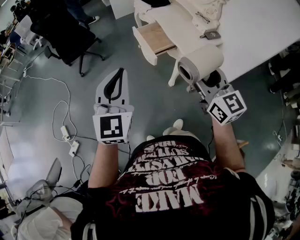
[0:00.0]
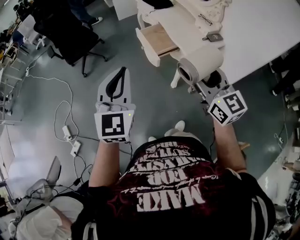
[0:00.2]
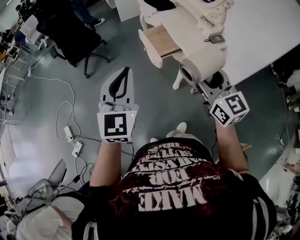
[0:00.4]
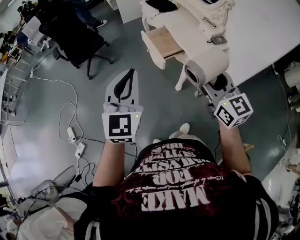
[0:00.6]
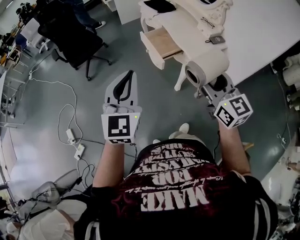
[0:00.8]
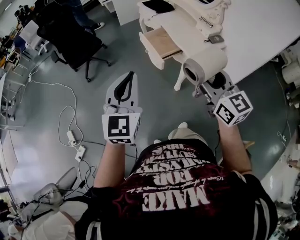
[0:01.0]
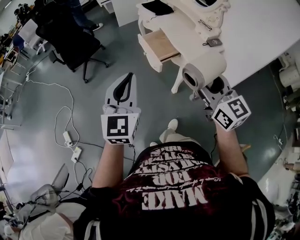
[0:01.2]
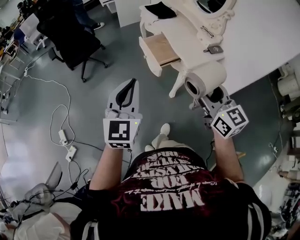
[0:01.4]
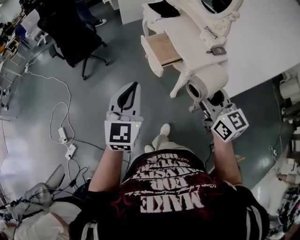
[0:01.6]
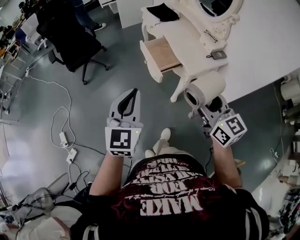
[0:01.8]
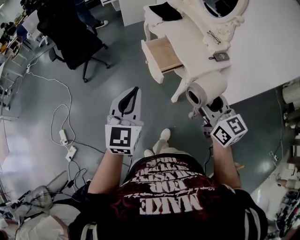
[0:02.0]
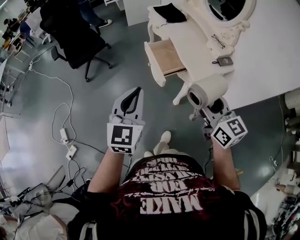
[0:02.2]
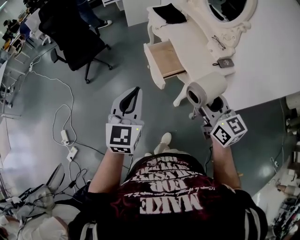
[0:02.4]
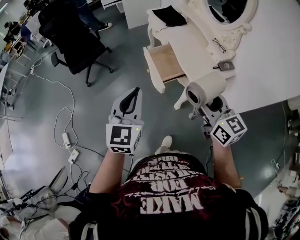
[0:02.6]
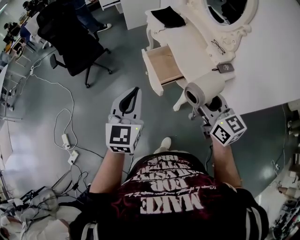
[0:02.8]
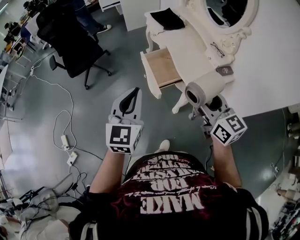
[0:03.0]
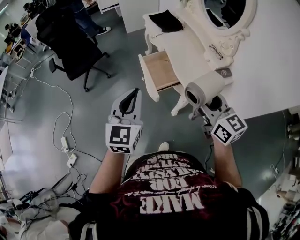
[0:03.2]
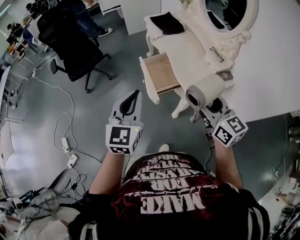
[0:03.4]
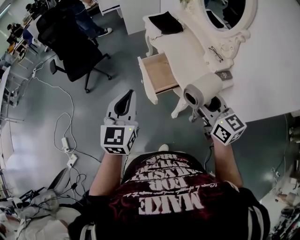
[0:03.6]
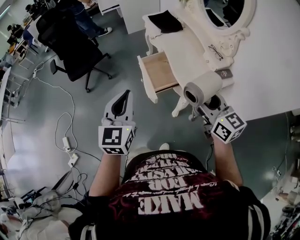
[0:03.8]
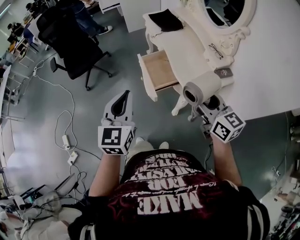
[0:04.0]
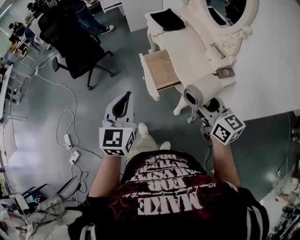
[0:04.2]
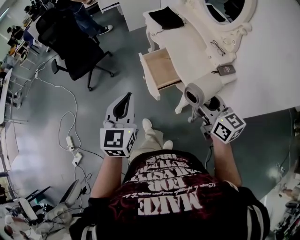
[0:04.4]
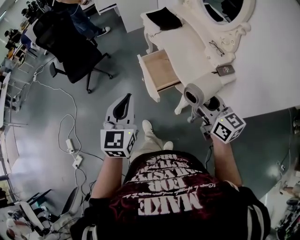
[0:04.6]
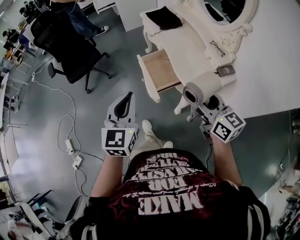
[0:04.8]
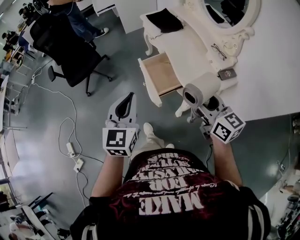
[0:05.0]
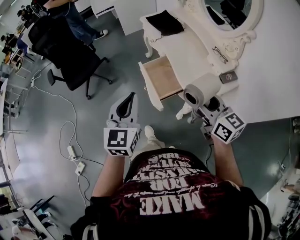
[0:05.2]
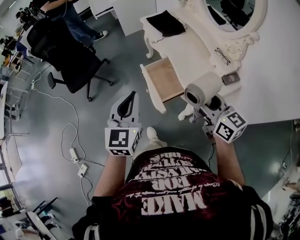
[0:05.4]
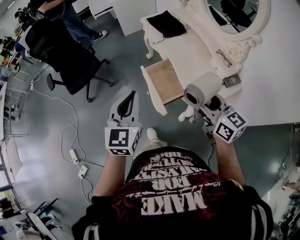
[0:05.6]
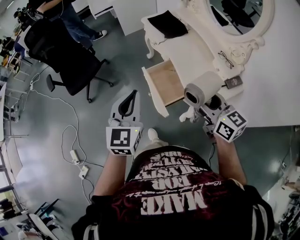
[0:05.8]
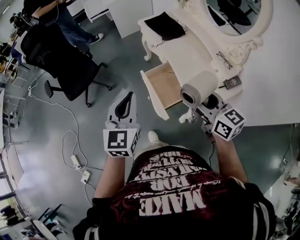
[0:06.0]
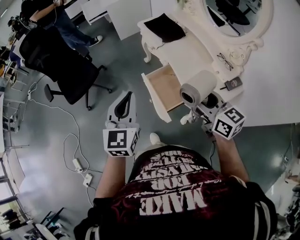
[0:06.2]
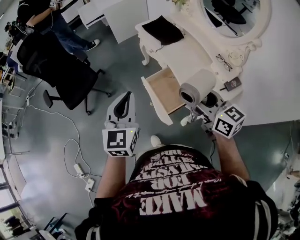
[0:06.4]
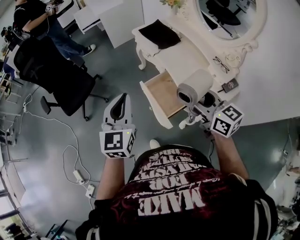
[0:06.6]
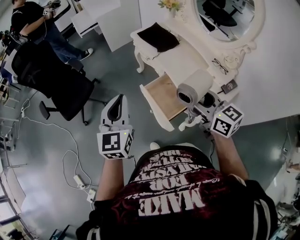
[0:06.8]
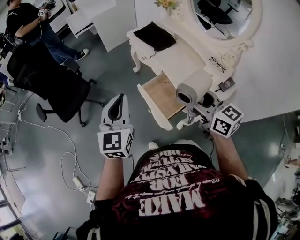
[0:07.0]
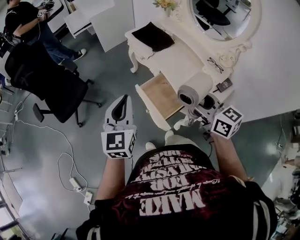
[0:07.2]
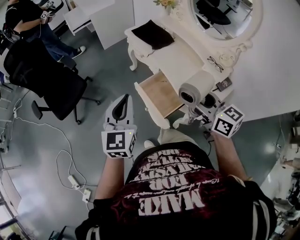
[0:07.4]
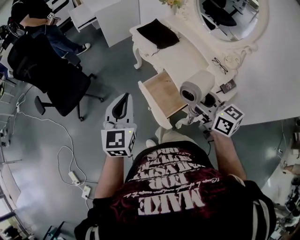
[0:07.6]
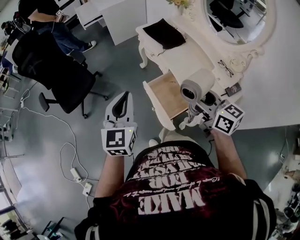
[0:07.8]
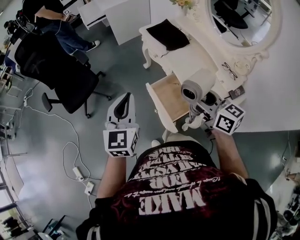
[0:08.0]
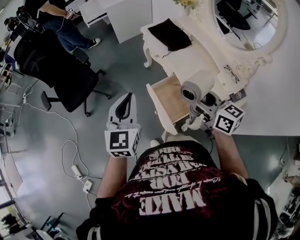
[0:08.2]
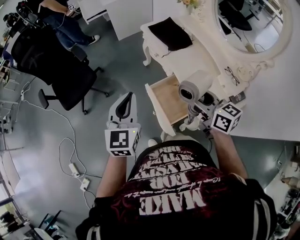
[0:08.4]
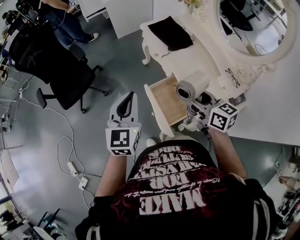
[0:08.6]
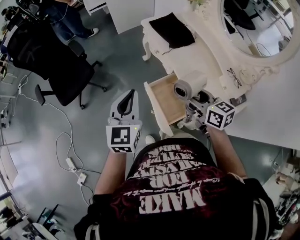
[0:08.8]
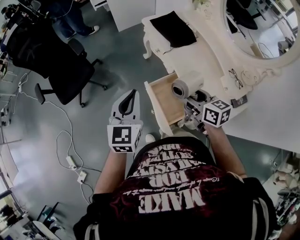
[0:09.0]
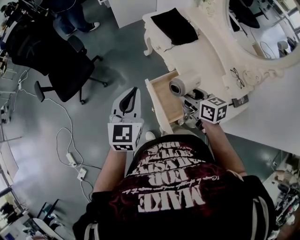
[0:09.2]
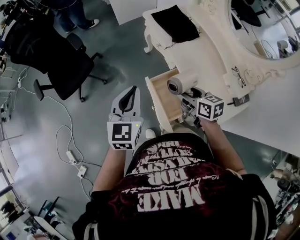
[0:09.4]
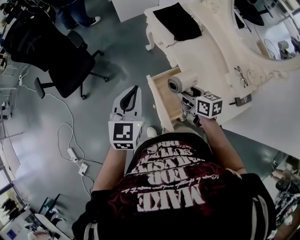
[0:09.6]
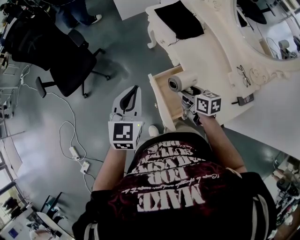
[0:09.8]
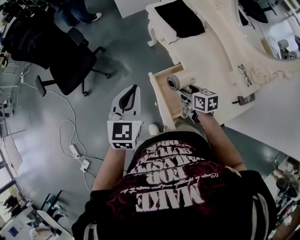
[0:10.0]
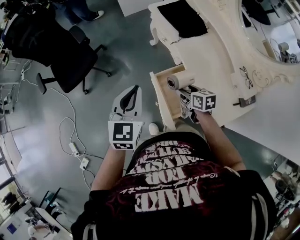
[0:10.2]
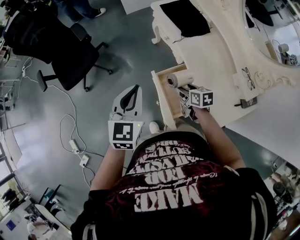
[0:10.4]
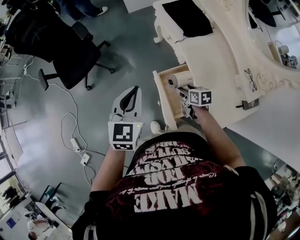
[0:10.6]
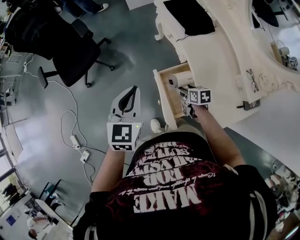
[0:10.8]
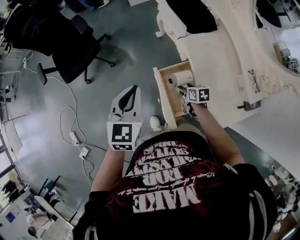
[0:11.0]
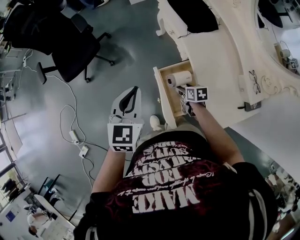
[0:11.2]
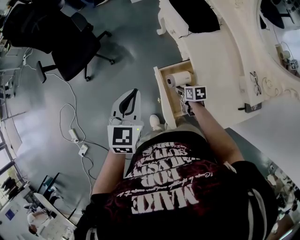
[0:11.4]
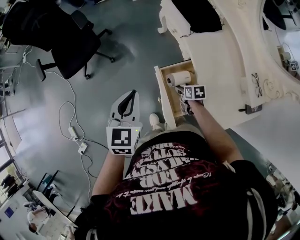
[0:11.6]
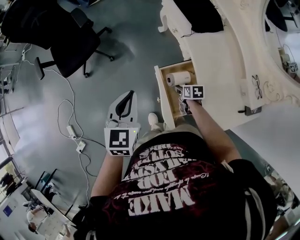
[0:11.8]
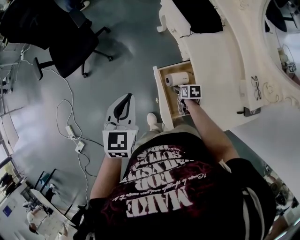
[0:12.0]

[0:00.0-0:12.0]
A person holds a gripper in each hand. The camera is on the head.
0:00.0 to 0:01.6: The grippers stay close to where they were, moving slightly.
0:01.6 to 0:03.0: The grippers both shift forward and to the right by some 20 cm.
0:03.0 to 0:04.4: The right gripper ends up some 5 cm from where it was.
0:04.4 to 0:06.0: The grippers both shift forward by roughly 20 cm.
0:06.0 to 0:07.6: Both grippers move forward, roughly 5 cm.
0:07.6 to 0:09.0: The left gripper travels forward and downward by roughly 10 cm. The right gripper travels forward and downward by approximately 20 cm.
0:09.0 to 0:10.4: The right gripper goes about 20 cm downward, and rotates roughly 20 degrees.
0:10.4 to 0:12.0: The right gripper goes approximately 15 cm downward, and swivels roughly 20 degrees. The left gripper is displaced downward by some 5 cm.

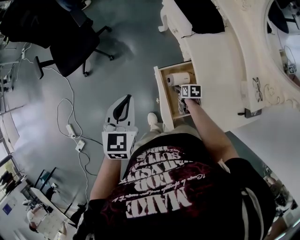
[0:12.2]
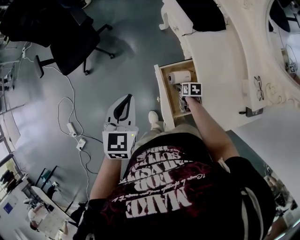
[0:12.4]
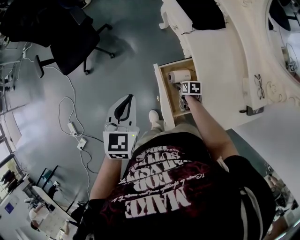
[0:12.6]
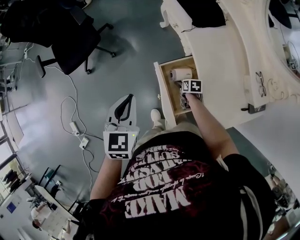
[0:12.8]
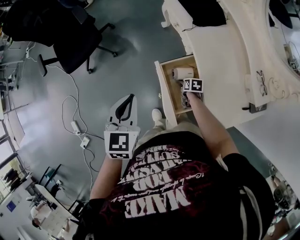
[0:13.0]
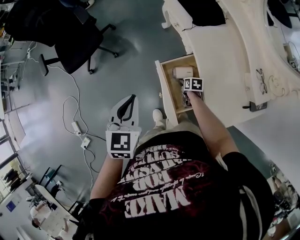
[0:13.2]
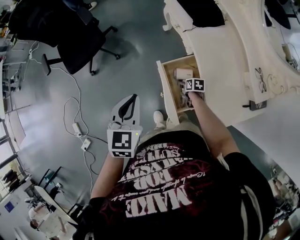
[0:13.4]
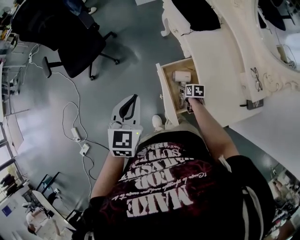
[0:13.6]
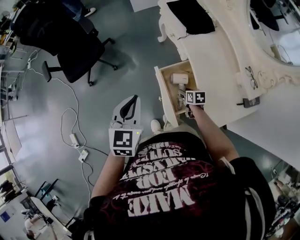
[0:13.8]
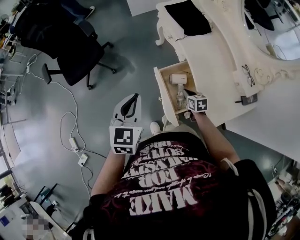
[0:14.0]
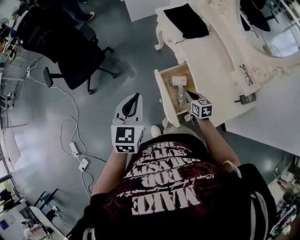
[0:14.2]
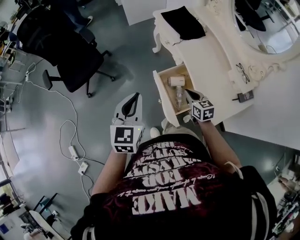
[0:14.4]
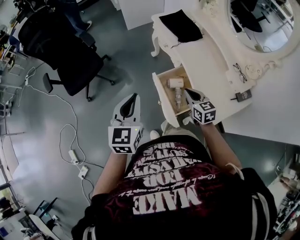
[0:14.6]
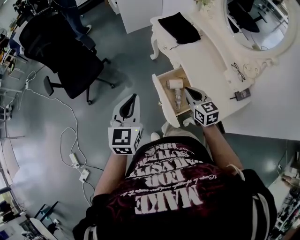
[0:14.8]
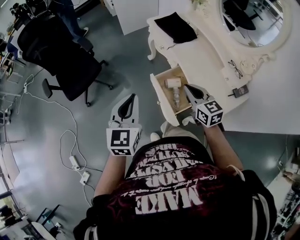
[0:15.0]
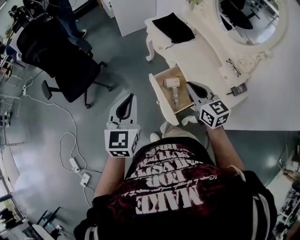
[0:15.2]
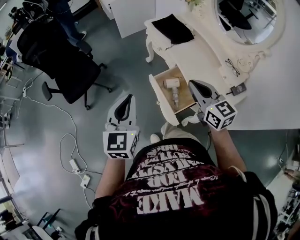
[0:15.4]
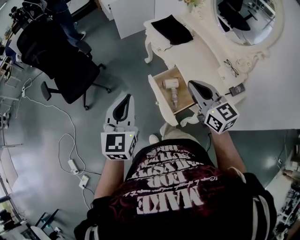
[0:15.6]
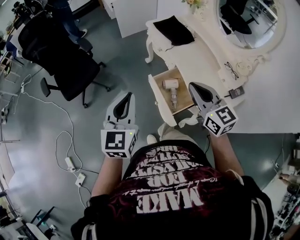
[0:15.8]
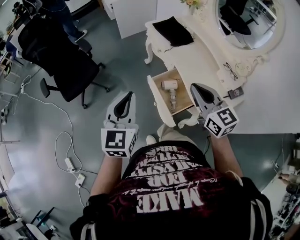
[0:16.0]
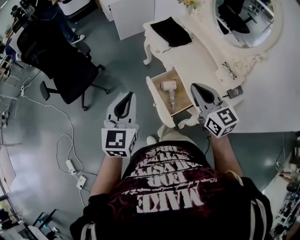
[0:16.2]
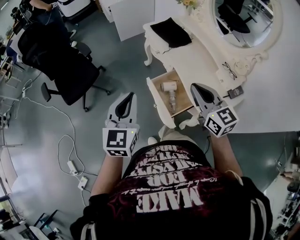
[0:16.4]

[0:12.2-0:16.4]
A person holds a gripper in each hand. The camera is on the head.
0:12.2 to 0:13.6: The left gripper travels backward by about 5 cm.
0:13.6 to 0:15.0: The left gripper is displaced upward and backward by approximately 10 cm; the right gripper moves upward, approximately 35 cm, tilts its fingers roughly 40 degrees upward, and closes up.
0:15.0 to 0:16.4: The right gripper is displaced upward by roughly 10 cm.

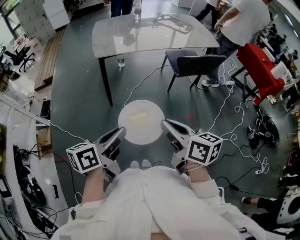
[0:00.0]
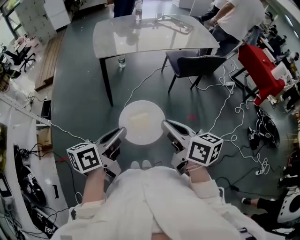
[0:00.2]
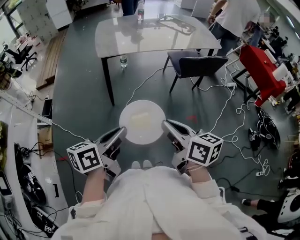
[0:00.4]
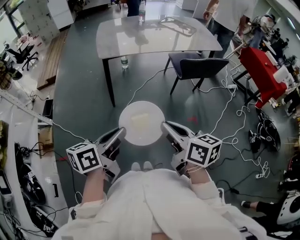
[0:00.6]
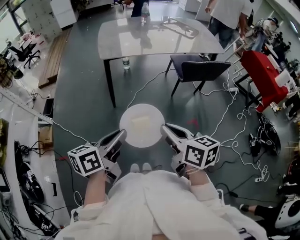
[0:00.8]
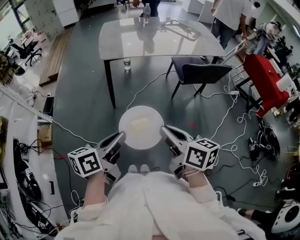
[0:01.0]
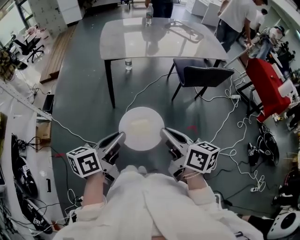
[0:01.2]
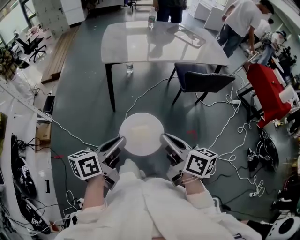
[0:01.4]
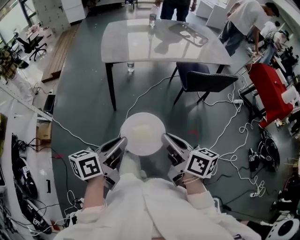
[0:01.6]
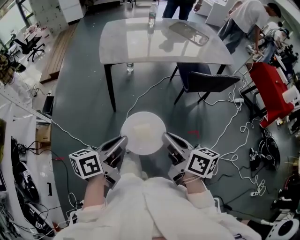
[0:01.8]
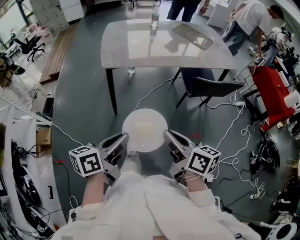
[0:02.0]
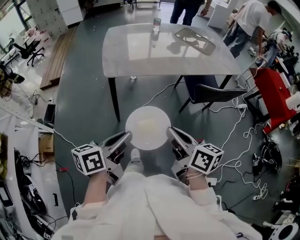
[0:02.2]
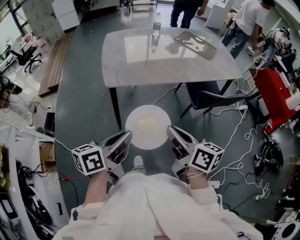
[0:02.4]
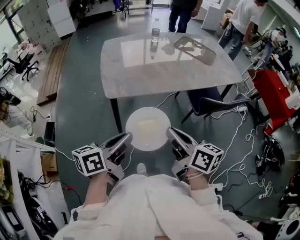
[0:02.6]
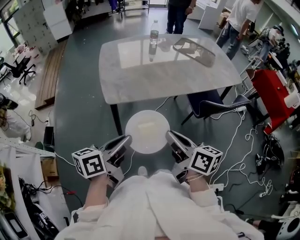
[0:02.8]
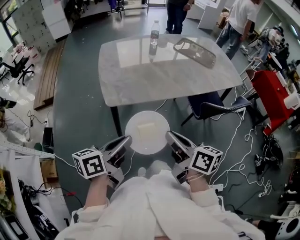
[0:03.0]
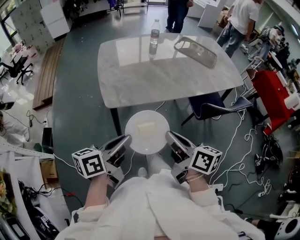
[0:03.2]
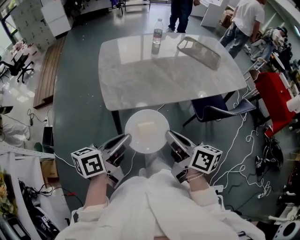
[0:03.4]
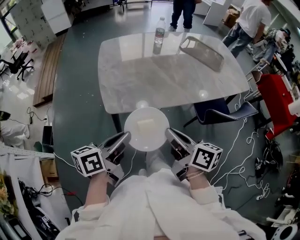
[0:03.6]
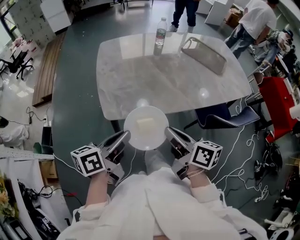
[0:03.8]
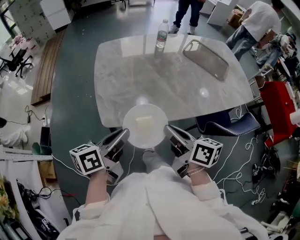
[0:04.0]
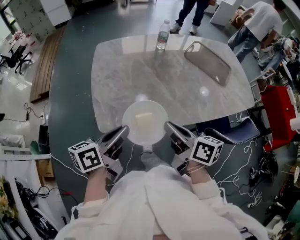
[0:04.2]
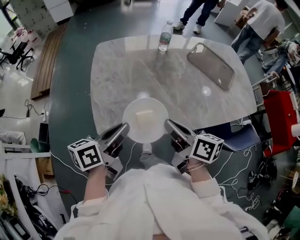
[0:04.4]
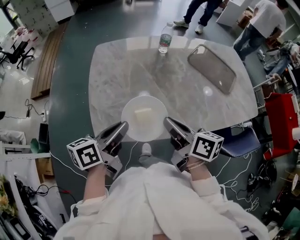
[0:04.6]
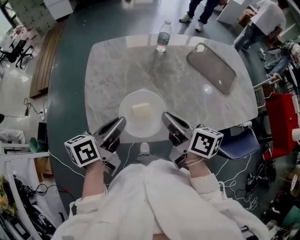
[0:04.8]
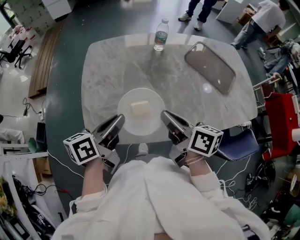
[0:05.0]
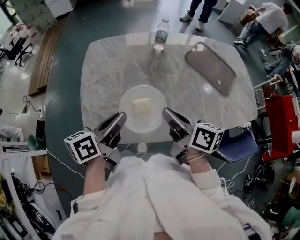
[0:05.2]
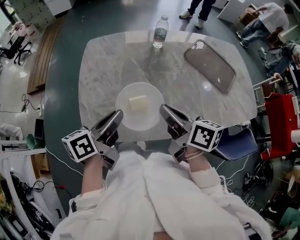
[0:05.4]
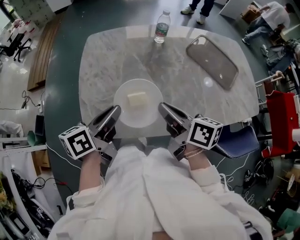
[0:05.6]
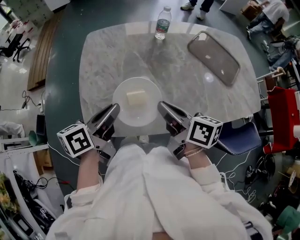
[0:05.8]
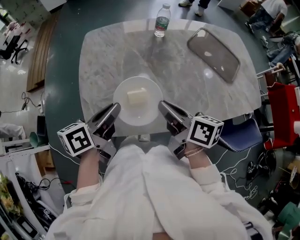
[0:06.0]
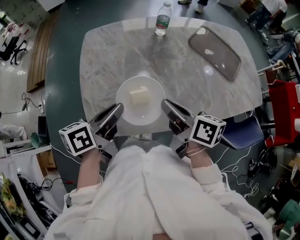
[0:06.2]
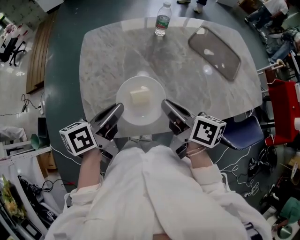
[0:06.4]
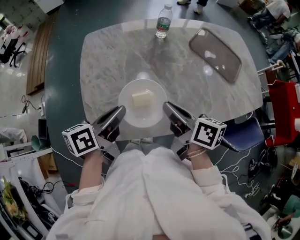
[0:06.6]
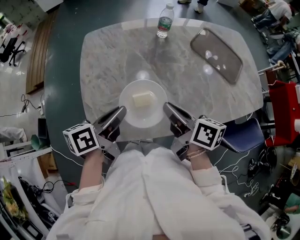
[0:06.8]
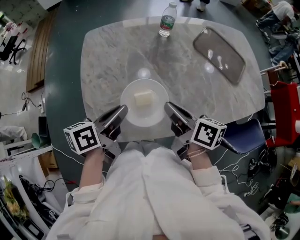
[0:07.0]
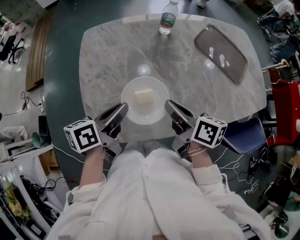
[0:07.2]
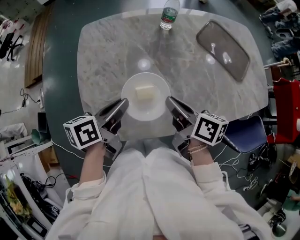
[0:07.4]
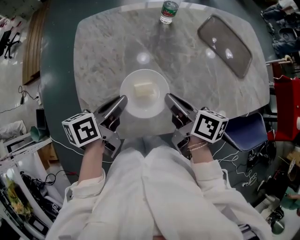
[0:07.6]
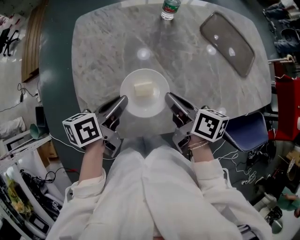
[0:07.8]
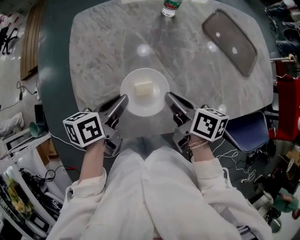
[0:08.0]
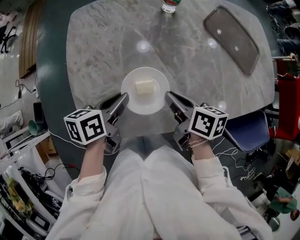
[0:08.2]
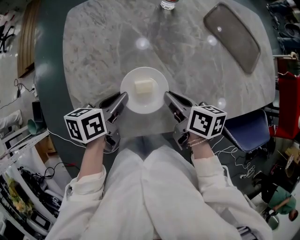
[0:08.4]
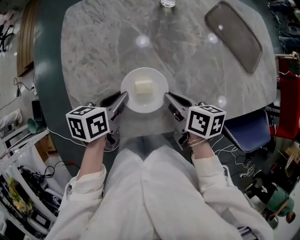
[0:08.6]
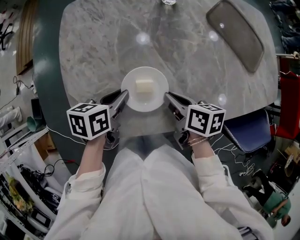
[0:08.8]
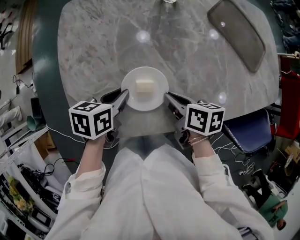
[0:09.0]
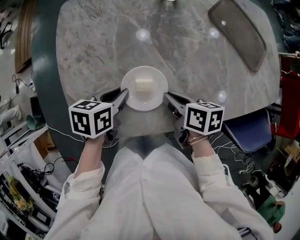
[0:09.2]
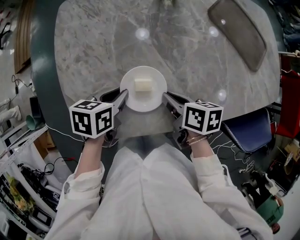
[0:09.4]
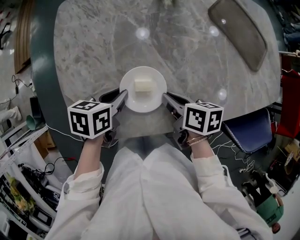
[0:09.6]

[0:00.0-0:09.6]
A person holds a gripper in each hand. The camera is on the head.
0:00.0 to 0:01.6: The grippers both shift forward by about 5 cm.
0:01.6 to 0:03.2: The right gripper shifts about 35 cm forward and to the left, while the left gripper moves forward, approximately 35 cm.
0:03.2 to 0:04.8: Both grippers move forward, approximately 35 cm.
0:04.8 to 0:06.4: The grippers move only a little.
0:06.4 to 0:08.0: The grippers both shift downward and forward by roughly 10 cm.
0:08.0 to 0:09.6: Both grippers move downward, about 10 cm. The left gripper turns by approximately 20 degrees.
